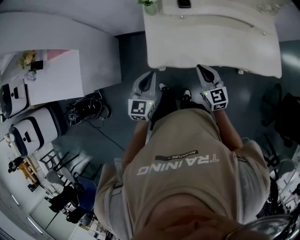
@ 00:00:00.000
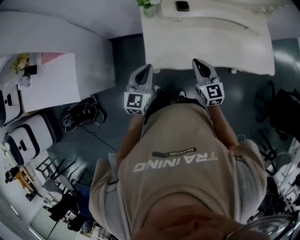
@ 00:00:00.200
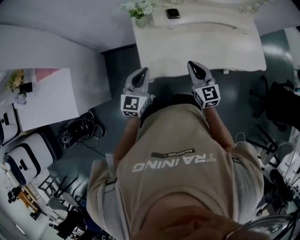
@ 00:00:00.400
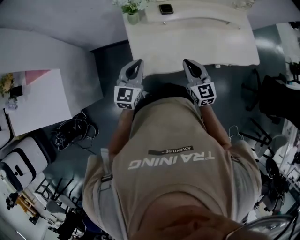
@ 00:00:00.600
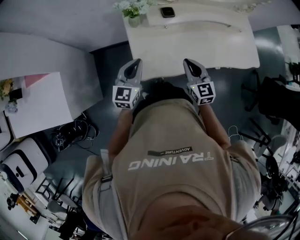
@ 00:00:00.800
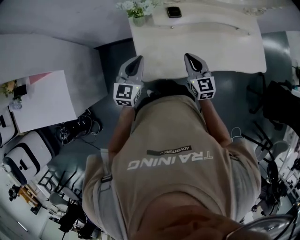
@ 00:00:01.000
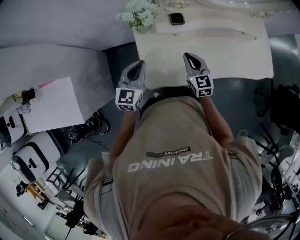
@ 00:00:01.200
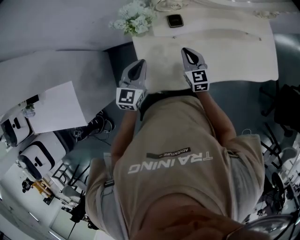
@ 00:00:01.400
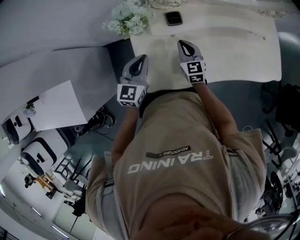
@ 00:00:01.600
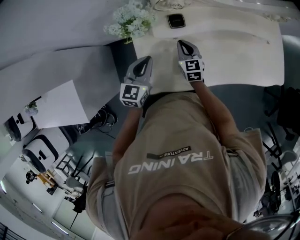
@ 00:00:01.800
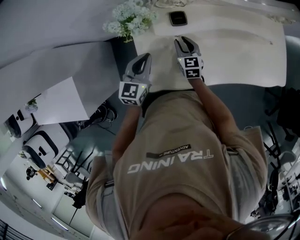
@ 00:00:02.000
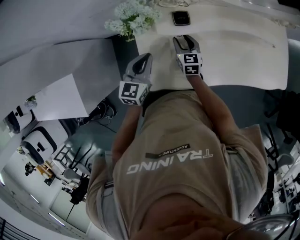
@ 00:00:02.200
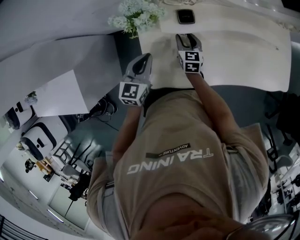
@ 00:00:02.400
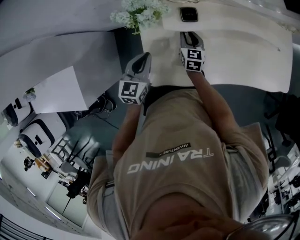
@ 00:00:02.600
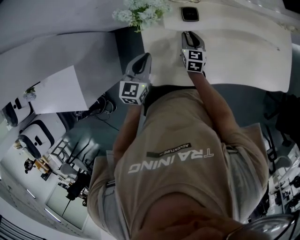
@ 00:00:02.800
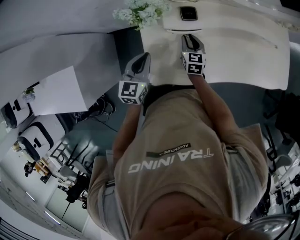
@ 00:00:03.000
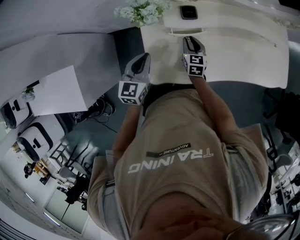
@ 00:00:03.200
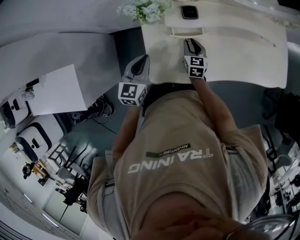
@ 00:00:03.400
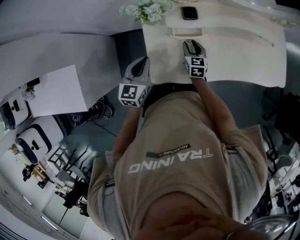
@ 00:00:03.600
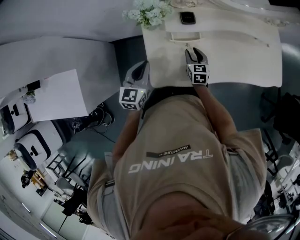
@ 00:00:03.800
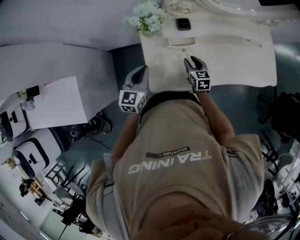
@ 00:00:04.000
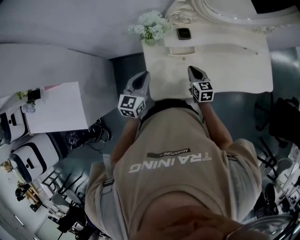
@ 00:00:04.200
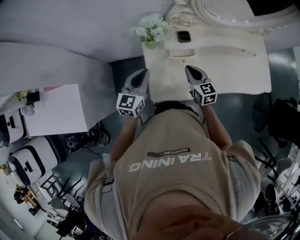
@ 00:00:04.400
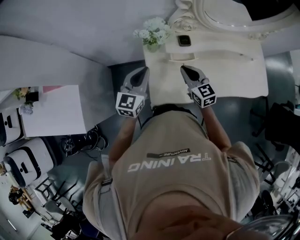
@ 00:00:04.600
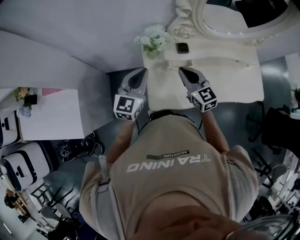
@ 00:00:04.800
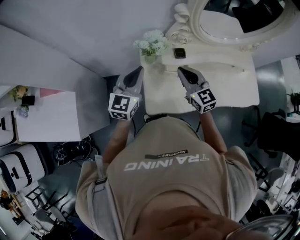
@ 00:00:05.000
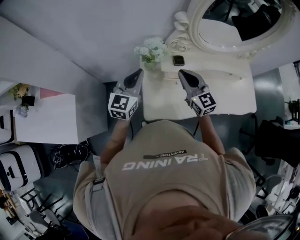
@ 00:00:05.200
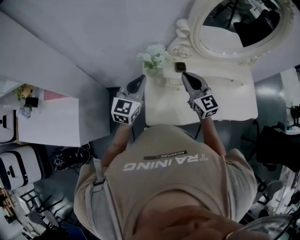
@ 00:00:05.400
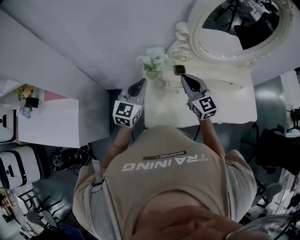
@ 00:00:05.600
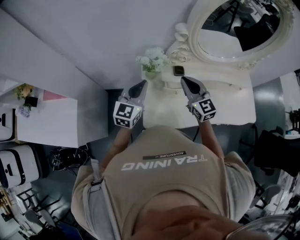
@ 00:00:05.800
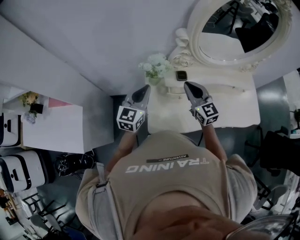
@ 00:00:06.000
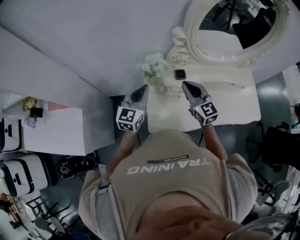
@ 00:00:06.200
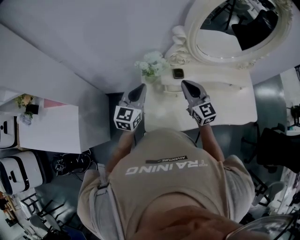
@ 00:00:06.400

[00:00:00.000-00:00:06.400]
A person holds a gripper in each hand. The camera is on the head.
00:00:00.000 to 00:00:01.600: The two grippers go some 30 cm forward.
00:00:01.600 to 00:00:03.200: The right gripper heads downward, covering some 5 cm, and opens its fingers. Meanwhile the left gripper shifts by approximately 5 cm.
00:00:03.200 to 00:00:04.800: The right gripper heads upward, covering about 25 cm, swivels approximately 30 degrees, and closes. Meanwhile the left gripper moves upward, approximately 15 cm.
00:00:04.800 to 00:00:06.400: The right gripper shifts roughly 5 cm upward.

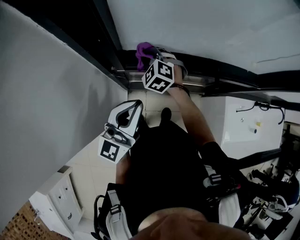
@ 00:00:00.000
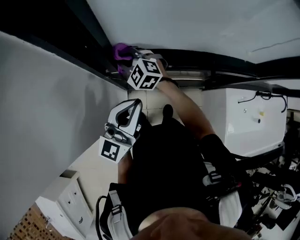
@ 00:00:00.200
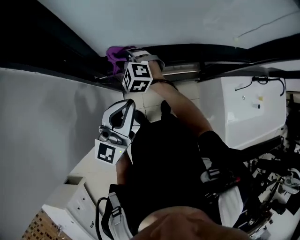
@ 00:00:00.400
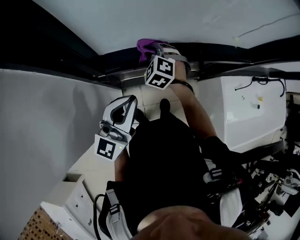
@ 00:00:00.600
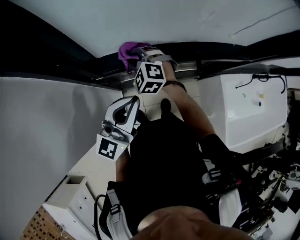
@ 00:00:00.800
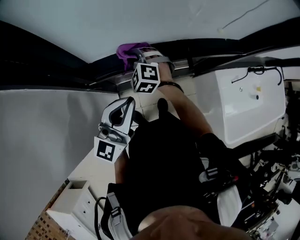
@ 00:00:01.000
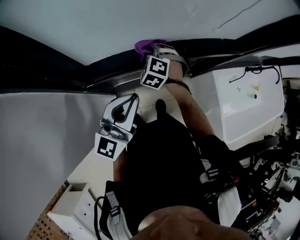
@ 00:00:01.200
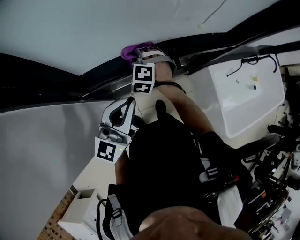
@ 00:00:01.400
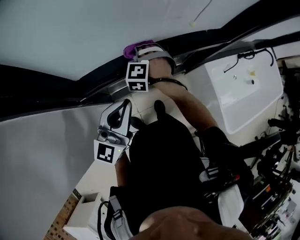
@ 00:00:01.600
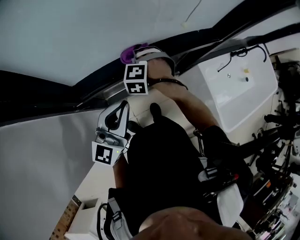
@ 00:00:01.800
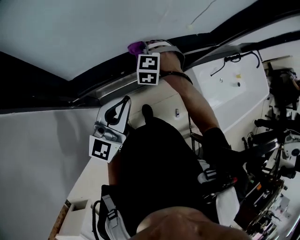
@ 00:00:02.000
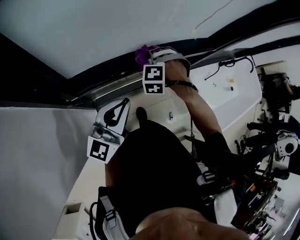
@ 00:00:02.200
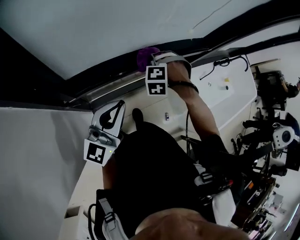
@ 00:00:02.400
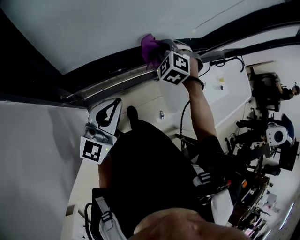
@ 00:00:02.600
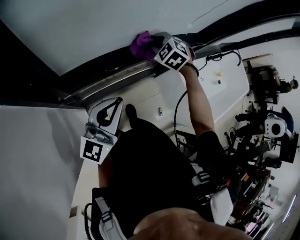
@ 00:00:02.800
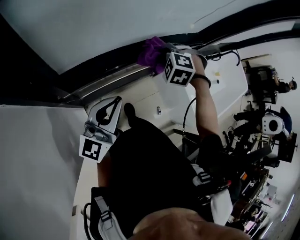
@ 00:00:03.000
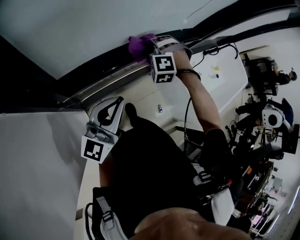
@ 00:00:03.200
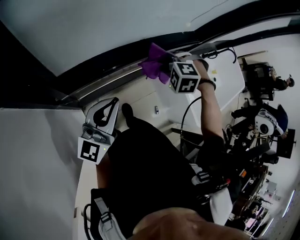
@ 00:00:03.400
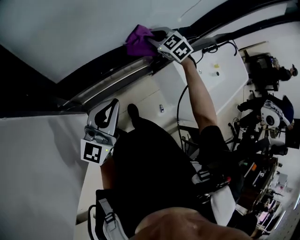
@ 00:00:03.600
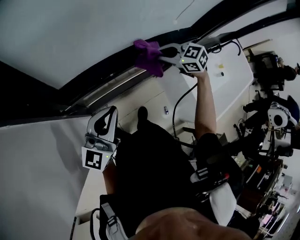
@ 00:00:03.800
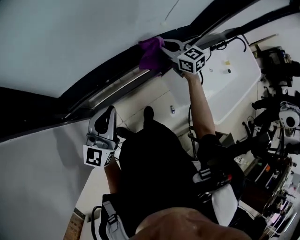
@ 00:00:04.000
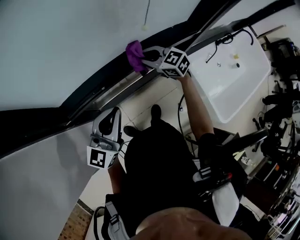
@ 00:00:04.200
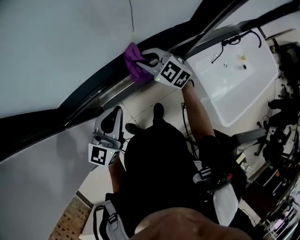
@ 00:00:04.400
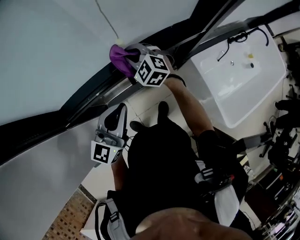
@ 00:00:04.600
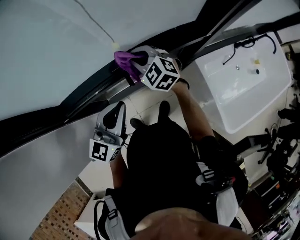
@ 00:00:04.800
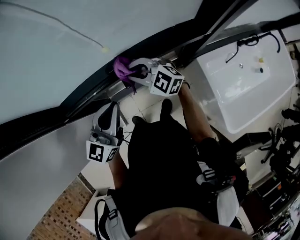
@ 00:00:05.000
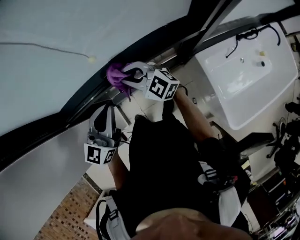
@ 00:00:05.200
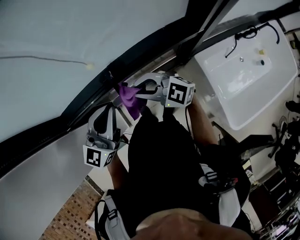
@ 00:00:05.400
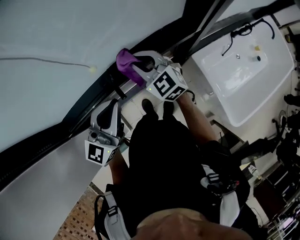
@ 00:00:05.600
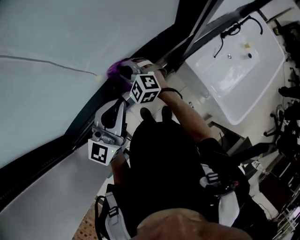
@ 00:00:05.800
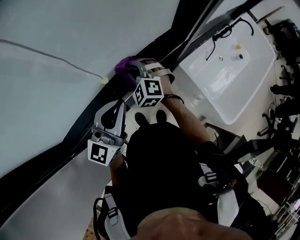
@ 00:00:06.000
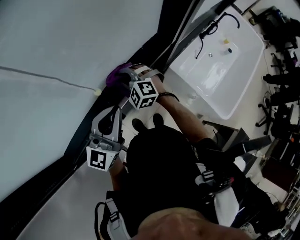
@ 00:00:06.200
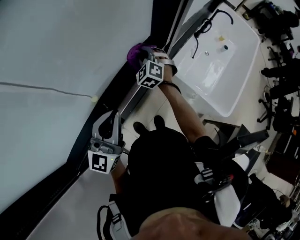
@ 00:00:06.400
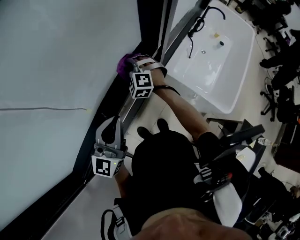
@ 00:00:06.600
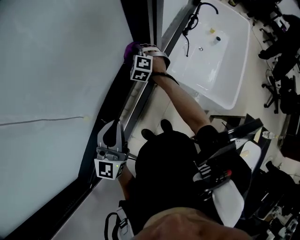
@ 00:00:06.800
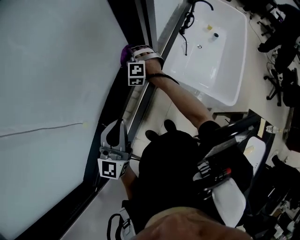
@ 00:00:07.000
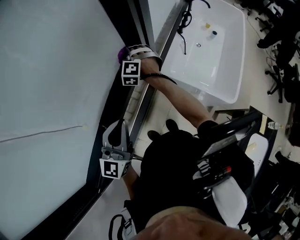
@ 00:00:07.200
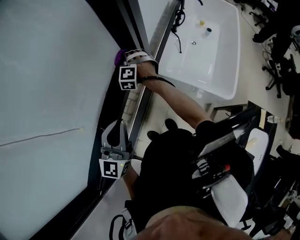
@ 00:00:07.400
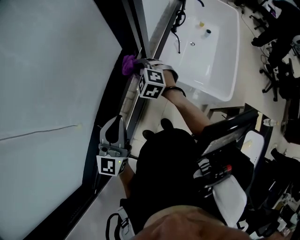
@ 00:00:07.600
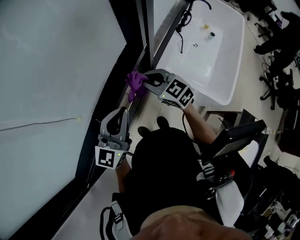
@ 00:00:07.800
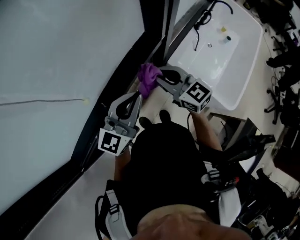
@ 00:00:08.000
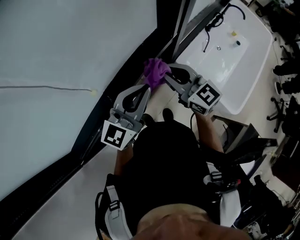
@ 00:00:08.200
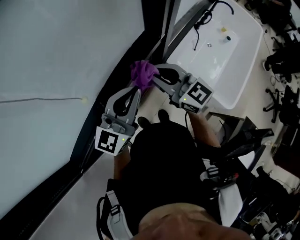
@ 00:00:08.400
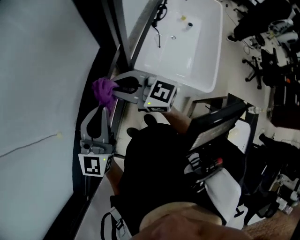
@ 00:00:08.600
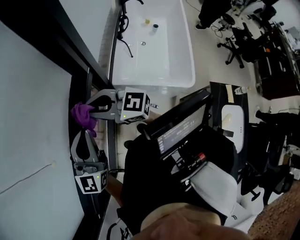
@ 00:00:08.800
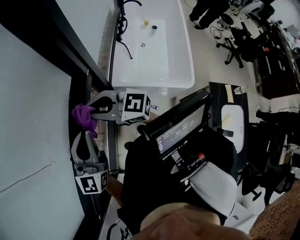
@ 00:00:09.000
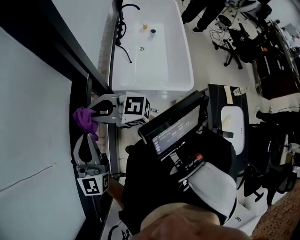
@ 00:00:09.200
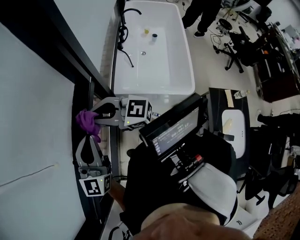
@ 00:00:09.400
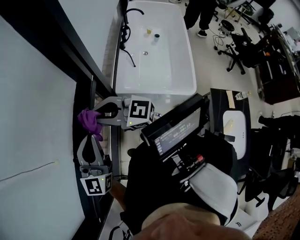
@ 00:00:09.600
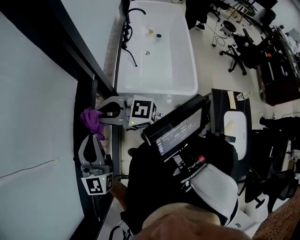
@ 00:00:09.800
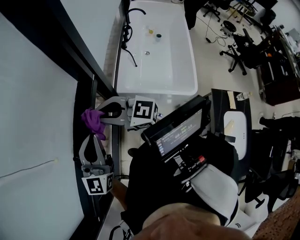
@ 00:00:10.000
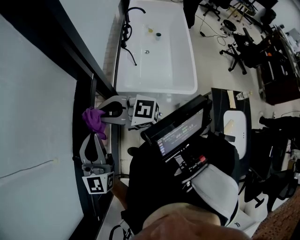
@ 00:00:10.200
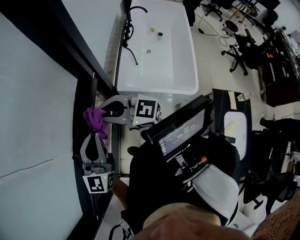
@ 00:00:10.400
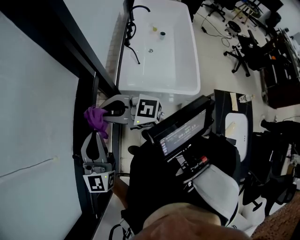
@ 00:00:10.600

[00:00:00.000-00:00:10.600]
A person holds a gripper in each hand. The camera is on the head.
00:00:00.000 to 00:00:01.600: The right gripper ends up some 20 cm from where it was, and swivels some 40 degrees. The left gripper shifts by roughly 15 cm.
00:00:01.600 to 00:00:03.000: The right gripper moves to the right and upward, some 15 cm.
00:00:03.000 to 00:00:04.600: The right gripper ends up roughly 10 cm from where it was, and changes its angle by roughly 40 degrees. The left gripper shifts by roughly 15 cm.
00:00:04.600 to 00:00:06.000: The left gripper shifts by approximately 15 cm.
00:00:06.000 to 00:00:07.600: The left gripper changes place by about 10 cm. The right gripper changes place by about 25 cm, and turns by some 30 degrees.
00:00:07.600 to 00:00:09.000: The right gripper shifts about 20 cm upward and backward, and tilts its fingers about 40 degrees upward. The left gripper moves to the right, roughly 5 cm.
00:00:09.000 to 00:00:10.600: The grippers stay close to where they were, moving slightly.

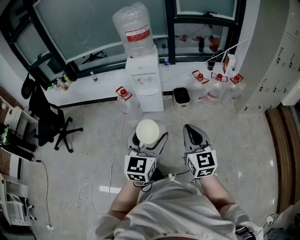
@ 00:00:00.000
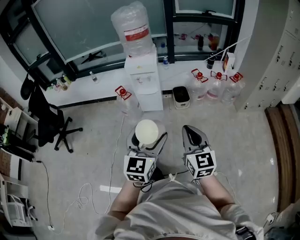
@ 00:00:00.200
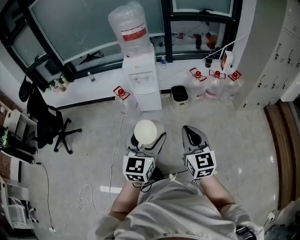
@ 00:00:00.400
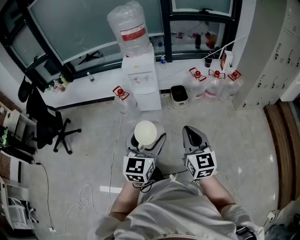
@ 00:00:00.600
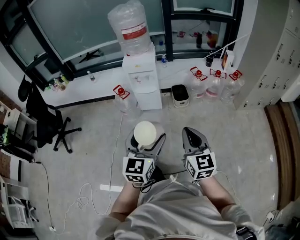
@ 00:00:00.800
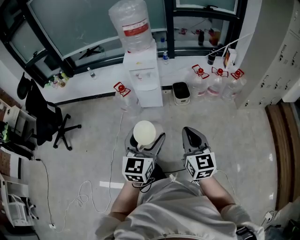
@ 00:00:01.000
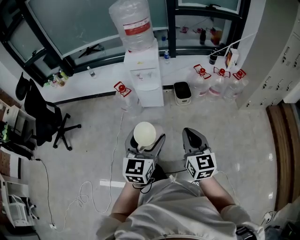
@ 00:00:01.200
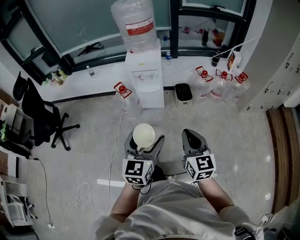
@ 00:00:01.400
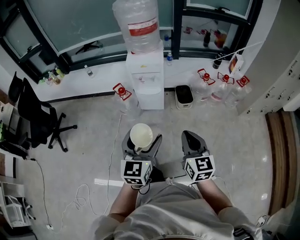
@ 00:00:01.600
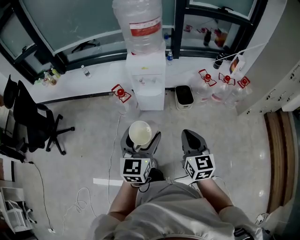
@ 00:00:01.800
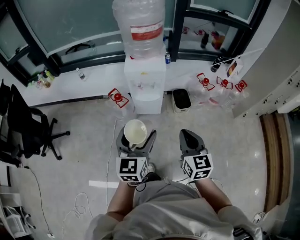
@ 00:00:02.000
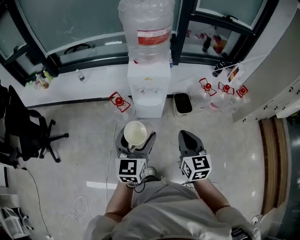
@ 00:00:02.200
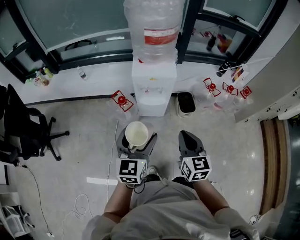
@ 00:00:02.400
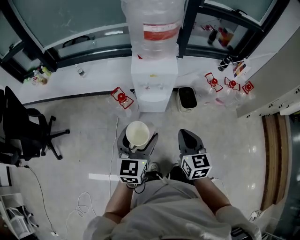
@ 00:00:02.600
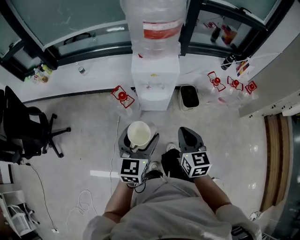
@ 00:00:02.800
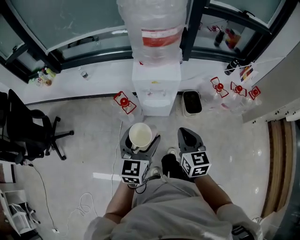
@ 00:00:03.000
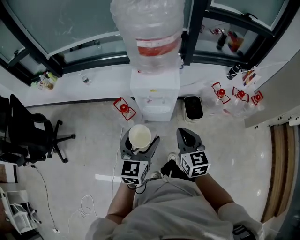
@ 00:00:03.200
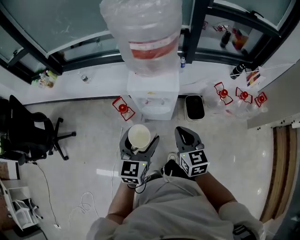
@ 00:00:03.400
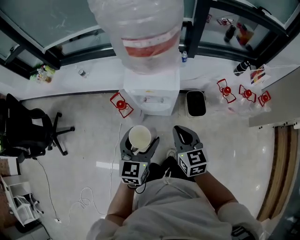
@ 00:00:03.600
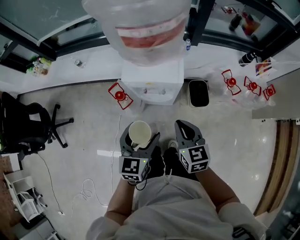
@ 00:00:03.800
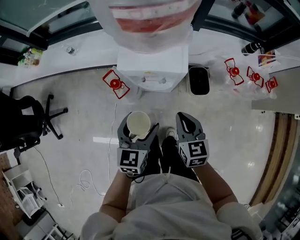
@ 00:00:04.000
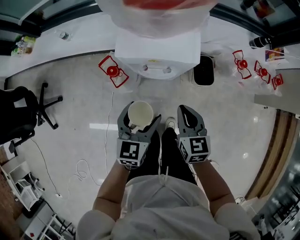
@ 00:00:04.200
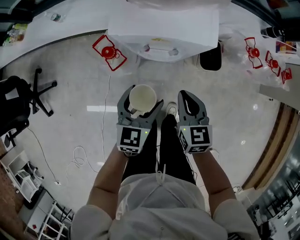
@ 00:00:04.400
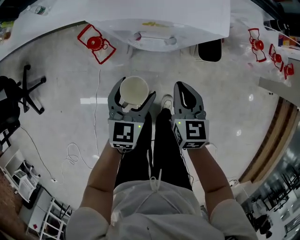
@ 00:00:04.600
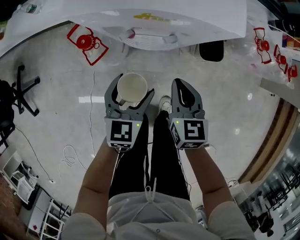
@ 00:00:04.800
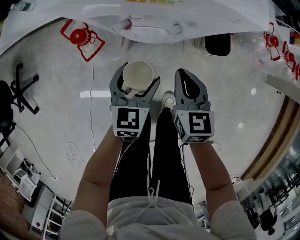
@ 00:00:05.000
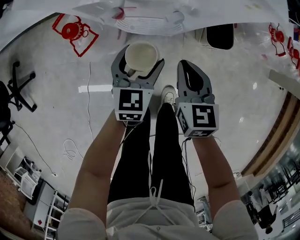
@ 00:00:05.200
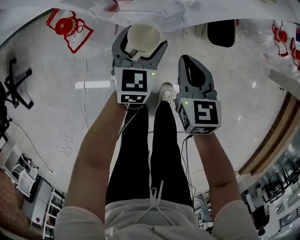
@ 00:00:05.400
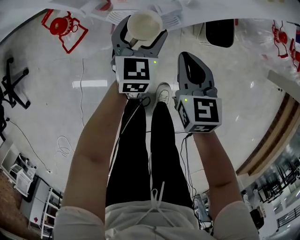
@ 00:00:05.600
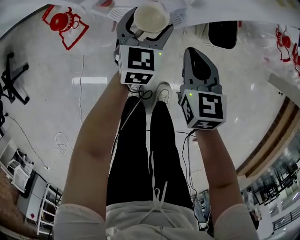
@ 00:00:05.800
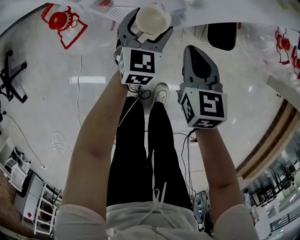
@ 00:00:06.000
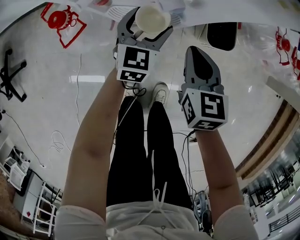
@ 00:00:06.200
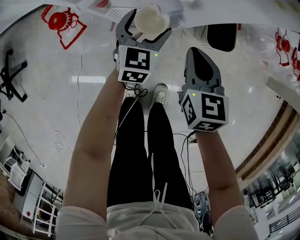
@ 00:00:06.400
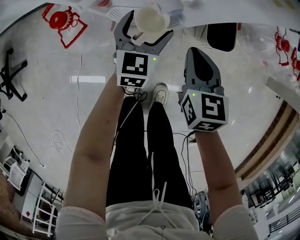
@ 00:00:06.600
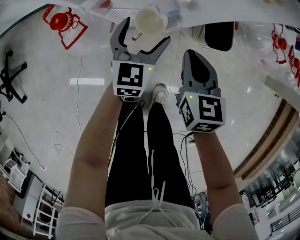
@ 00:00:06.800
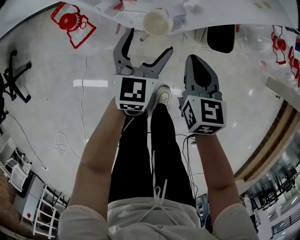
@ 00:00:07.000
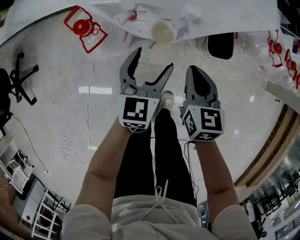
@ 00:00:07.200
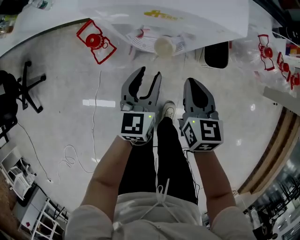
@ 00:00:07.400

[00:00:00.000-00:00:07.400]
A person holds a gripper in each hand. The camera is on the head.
00:00:00.000 to 00:00:01.400: The left gripper travels forward and to the left by roughly 10 cm; the right gripper shifts roughly 5 cm forward.
00:00:01.400 to 00:00:03.000: The grippers both shift forward and to the left by about 30 cm.
00:00:03.000 to 00:00:04.400: The grippers both shift downward and forward by approximately 25 cm.
00:00:04.400 to 00:00:06.000: The left gripper travels downward and forward by some 30 cm, while the right gripper travels downward by roughly 20 cm.
00:00:06.000 to 00:00:07.400: The right gripper heads upward, covering some 10 cm. Meanwhile the left gripper moves upward, backward and to the left, approximately 15 cm, and closes.
